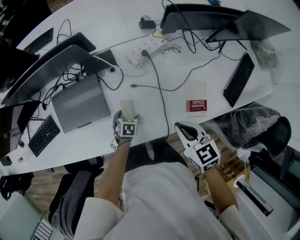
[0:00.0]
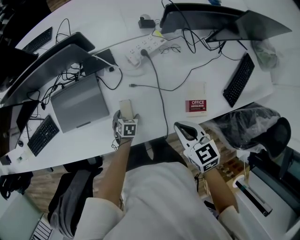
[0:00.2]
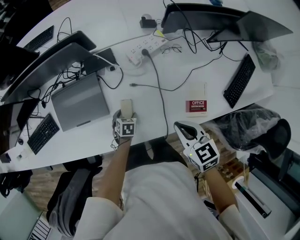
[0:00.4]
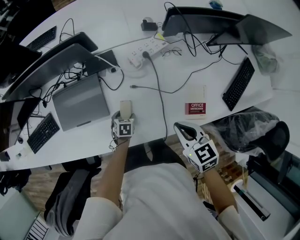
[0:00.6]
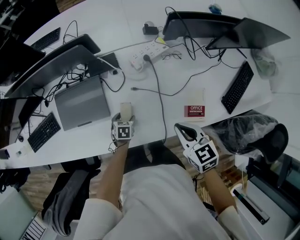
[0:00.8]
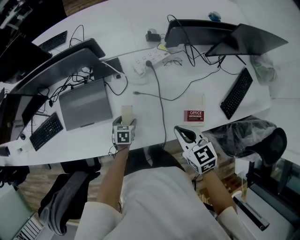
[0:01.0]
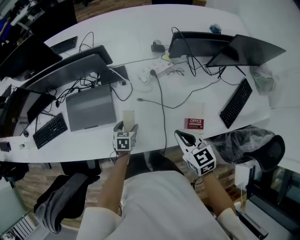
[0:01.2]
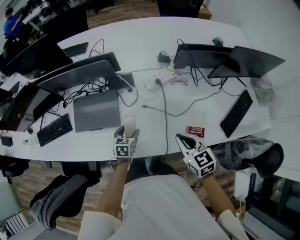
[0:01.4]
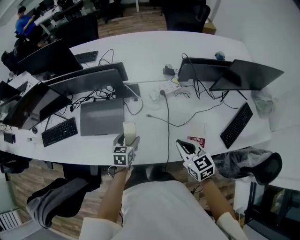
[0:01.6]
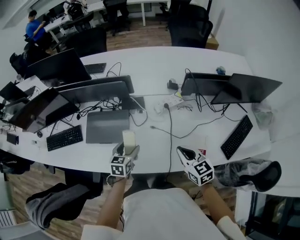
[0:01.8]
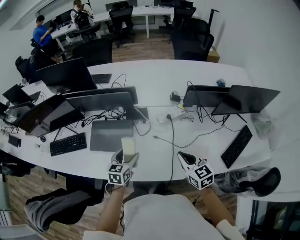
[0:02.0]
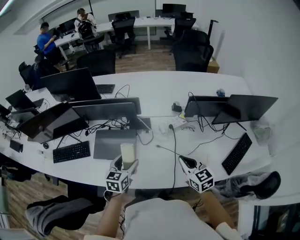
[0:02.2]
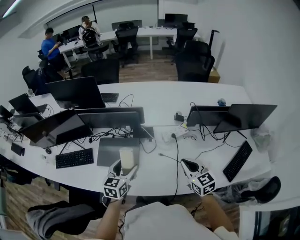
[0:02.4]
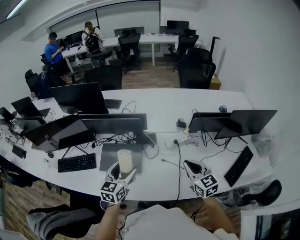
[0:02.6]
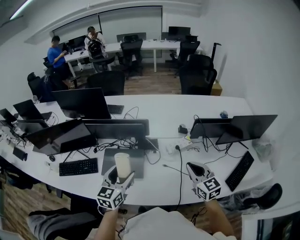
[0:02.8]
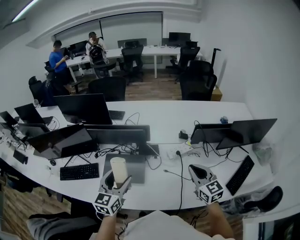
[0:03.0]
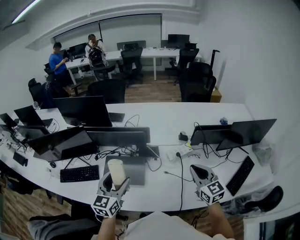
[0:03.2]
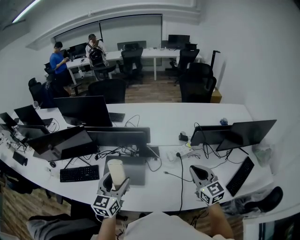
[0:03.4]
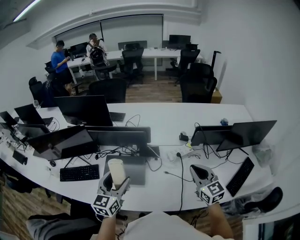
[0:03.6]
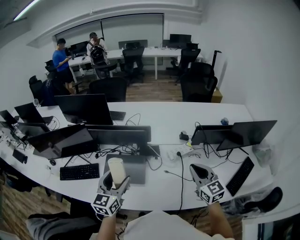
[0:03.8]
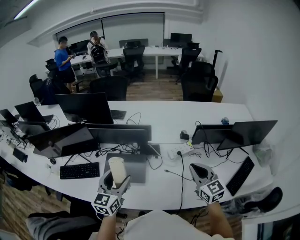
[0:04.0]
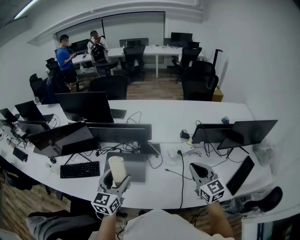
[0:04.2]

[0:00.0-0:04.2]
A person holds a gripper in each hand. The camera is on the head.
0:00.0 to 0:01.4: The left gripper heads upward, covering roughly 15 cm, and changes its angle by roughly 20 degrees; the right gripper shifts approximately 5 cm upward.
0:01.4 to 0:02.8: The left gripper shifts approximately 35 cm upward, and tilts its fingers about 30 degrees upward. The right gripper travels upward by some 20 cm.
0:02.8 to 0:04.2: The grippers make only small movements.

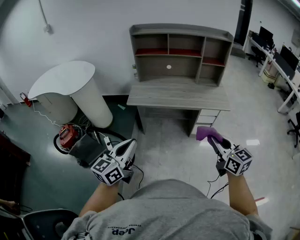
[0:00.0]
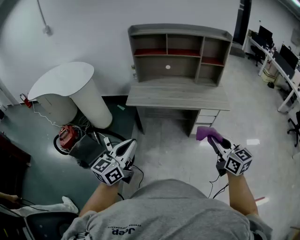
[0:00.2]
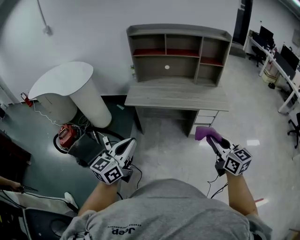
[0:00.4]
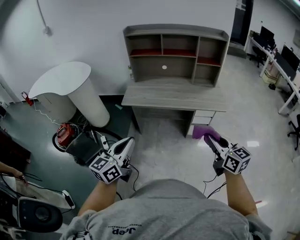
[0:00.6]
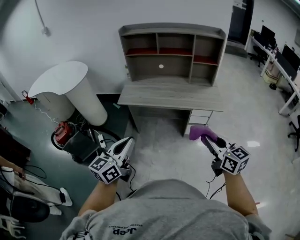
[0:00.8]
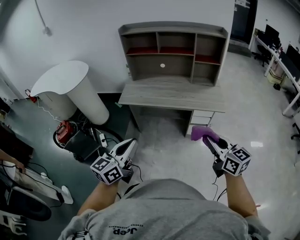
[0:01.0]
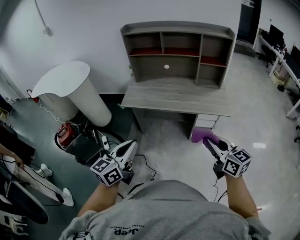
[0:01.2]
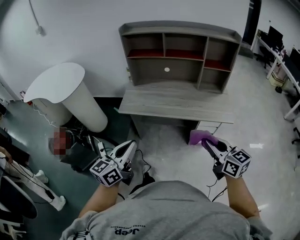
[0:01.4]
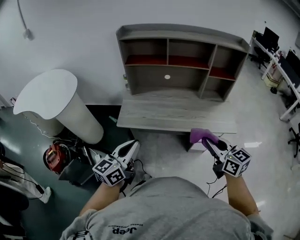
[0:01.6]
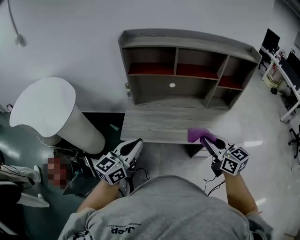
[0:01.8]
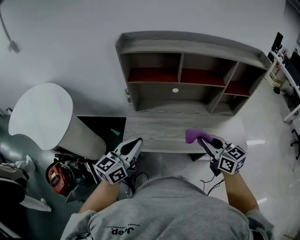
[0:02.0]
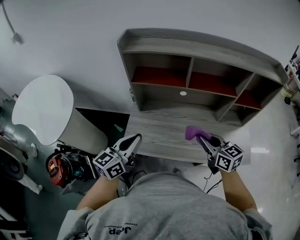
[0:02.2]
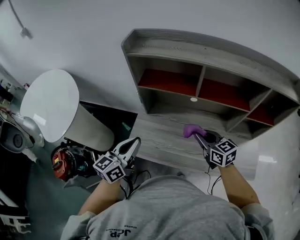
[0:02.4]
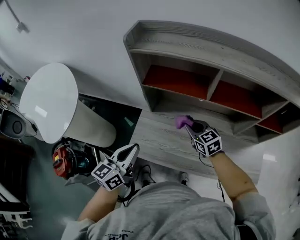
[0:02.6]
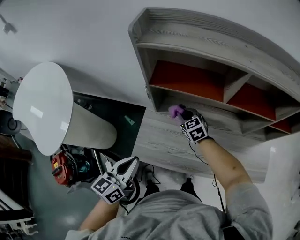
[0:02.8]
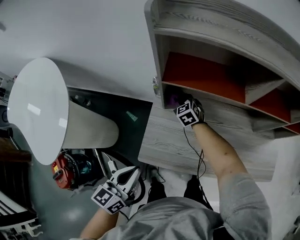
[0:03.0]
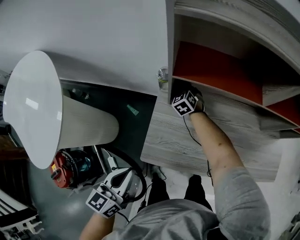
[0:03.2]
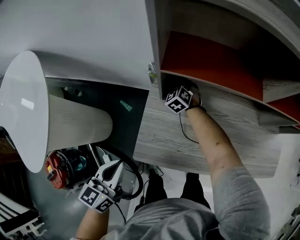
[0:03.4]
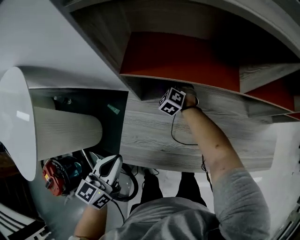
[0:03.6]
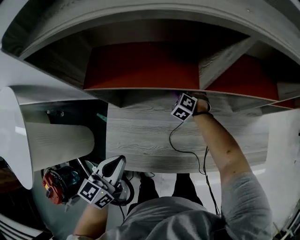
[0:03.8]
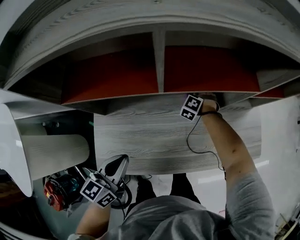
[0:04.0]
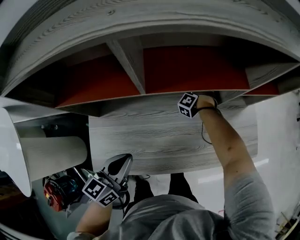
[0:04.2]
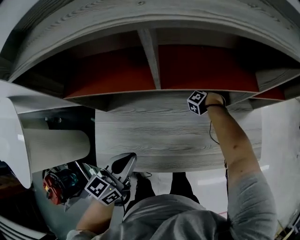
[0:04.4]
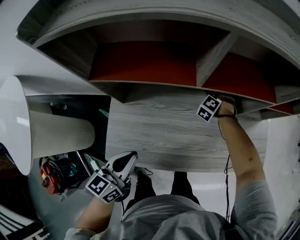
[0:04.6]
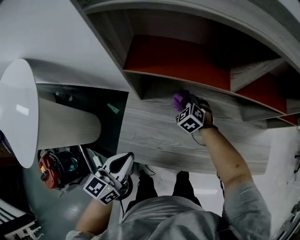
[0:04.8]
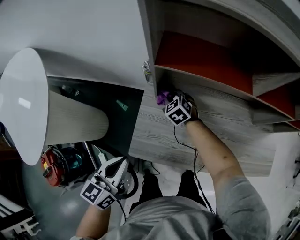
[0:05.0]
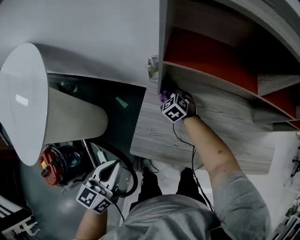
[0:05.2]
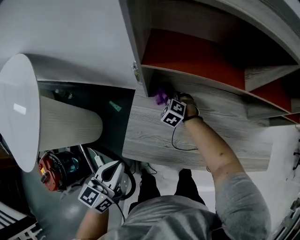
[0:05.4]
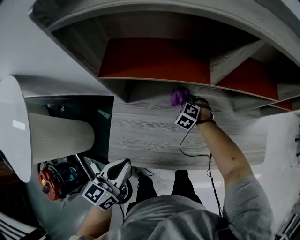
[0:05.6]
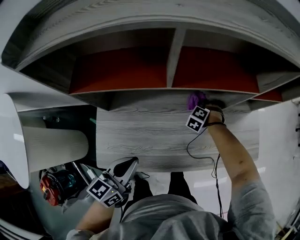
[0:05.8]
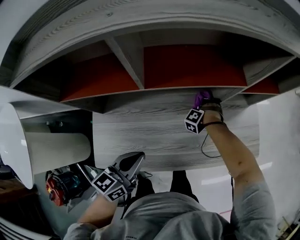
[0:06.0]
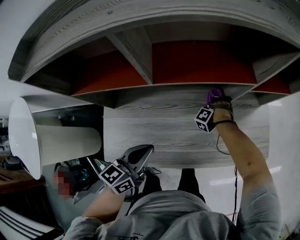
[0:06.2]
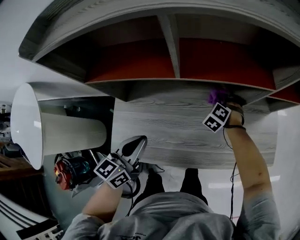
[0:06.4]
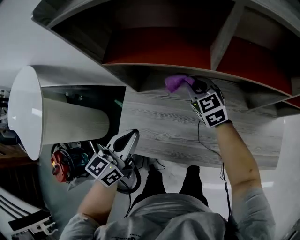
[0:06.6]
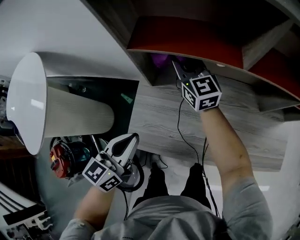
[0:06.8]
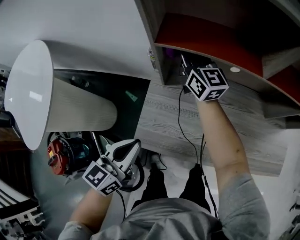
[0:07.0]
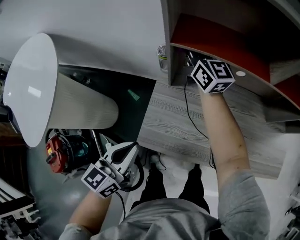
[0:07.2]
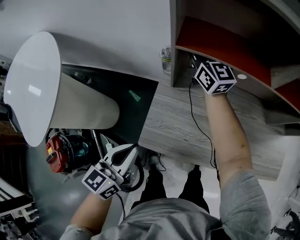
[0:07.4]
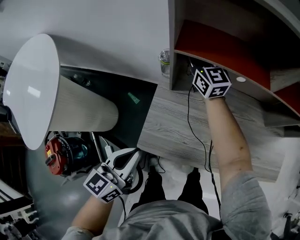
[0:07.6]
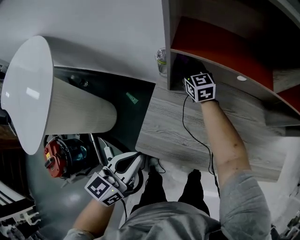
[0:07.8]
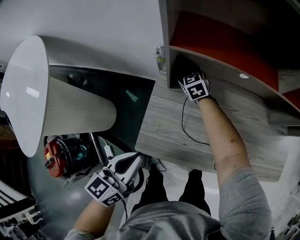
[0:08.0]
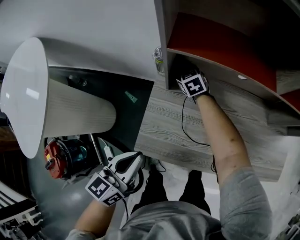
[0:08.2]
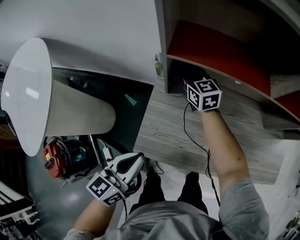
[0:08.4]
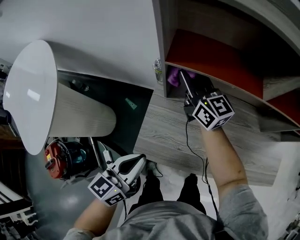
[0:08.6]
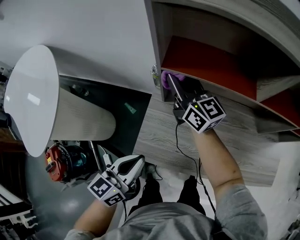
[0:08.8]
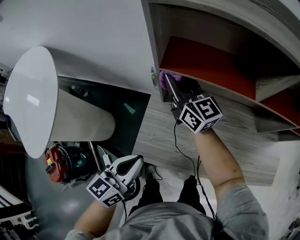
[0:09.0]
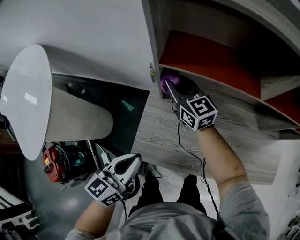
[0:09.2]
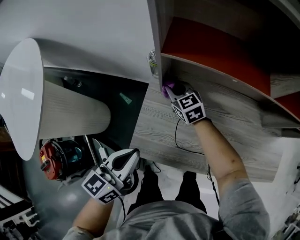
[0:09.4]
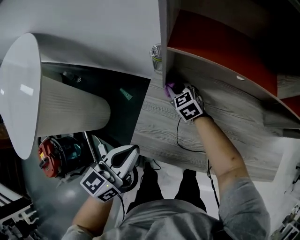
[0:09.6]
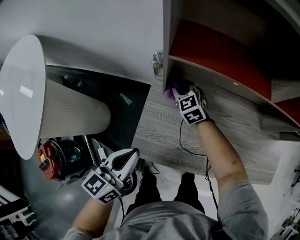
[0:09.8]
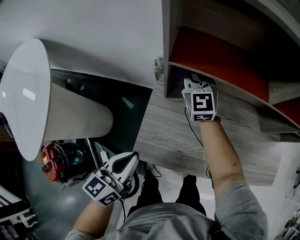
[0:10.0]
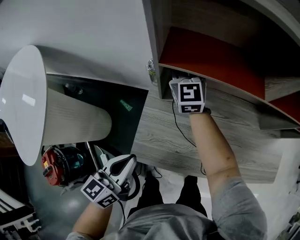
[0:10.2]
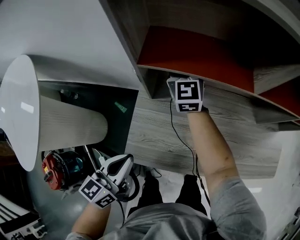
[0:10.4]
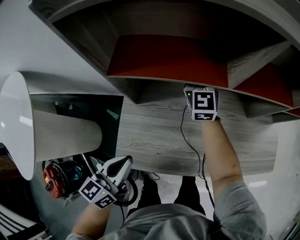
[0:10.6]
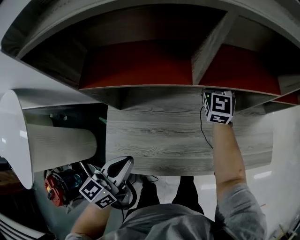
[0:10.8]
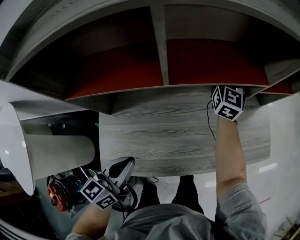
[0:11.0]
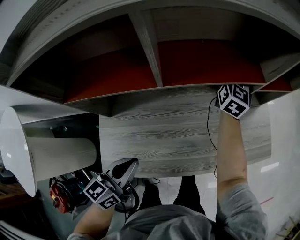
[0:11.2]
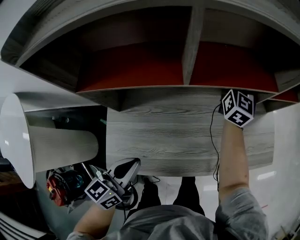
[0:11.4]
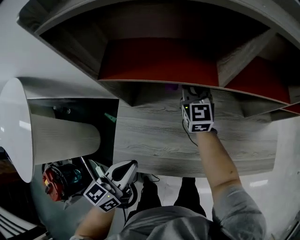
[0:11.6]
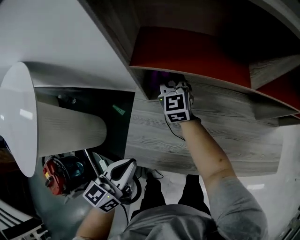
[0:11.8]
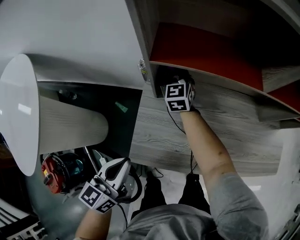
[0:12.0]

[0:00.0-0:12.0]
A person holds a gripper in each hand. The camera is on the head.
0:00.0 to 0:01.6: The two grippers go about 25 cm forward.
0:01.6 to 0:03.0: The left gripper goes about 40 cm forward, to the left and downward, and turns by roughly 20 degrees. The right gripper shifts some 80 cm forward, to the left and downward, and swivels roughly 40 degrees.
0:03.0 to 0:04.4: The left gripper ends up some 25 cm from where it was. The right gripper moves some 50 cm, and changes its angle by some 80 degrees.
0:04.4 to 0:06.0: The right gripper travels upward and back again, approximately 5 cm each way.
0:06.0 to 0:07.6: The left gripper shifts by some 30 cm, and swivels roughly 20 degrees. Meanwhile the right gripper changes place by about 60 cm, and angles its fingers upward, by roughly 50 degrees.
0:07.6 to 0:09.0: The right gripper heads backward, covering approximately 10 cm, and travels downward and back again, about 25 cm each way.
0:09.0 to 0:10.4: The right gripper moves forward and to the right, approximately 10 cm, travels downward and back again, roughly 25 cm each way, and swivels about 40 degrees.
0:10.4 to 0:12.0: The right gripper heads downward, covering about 10 cm.

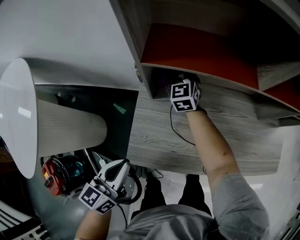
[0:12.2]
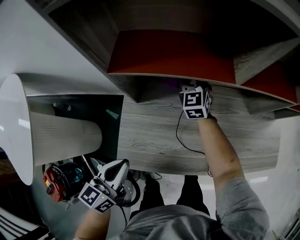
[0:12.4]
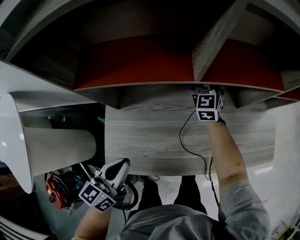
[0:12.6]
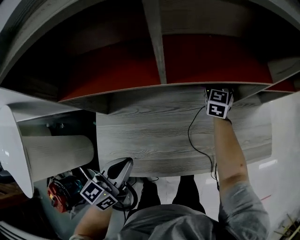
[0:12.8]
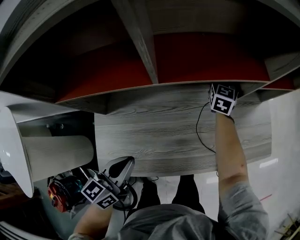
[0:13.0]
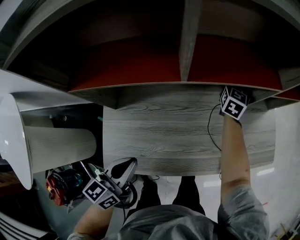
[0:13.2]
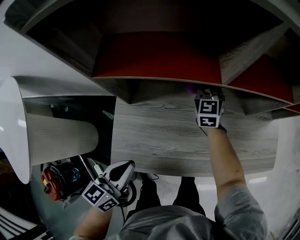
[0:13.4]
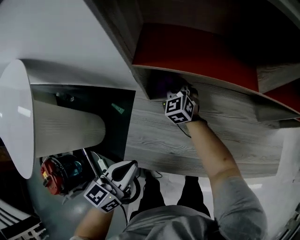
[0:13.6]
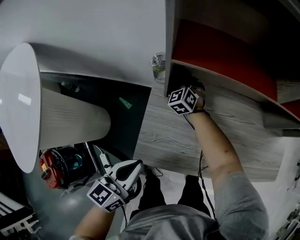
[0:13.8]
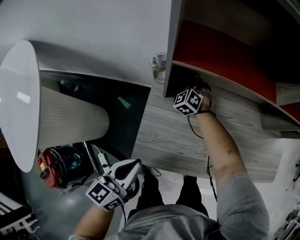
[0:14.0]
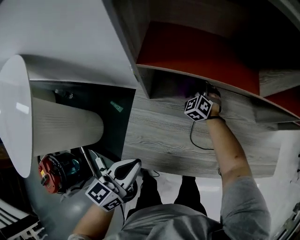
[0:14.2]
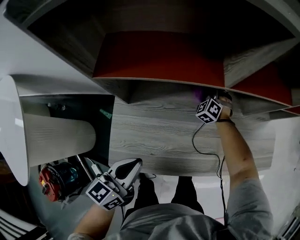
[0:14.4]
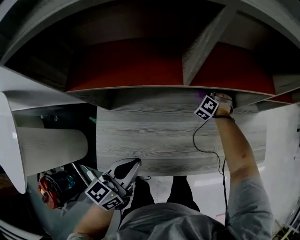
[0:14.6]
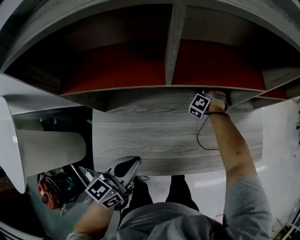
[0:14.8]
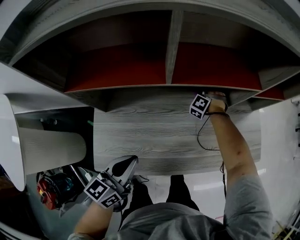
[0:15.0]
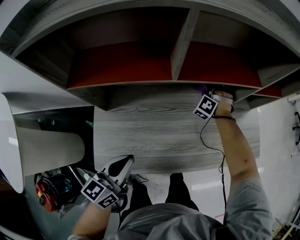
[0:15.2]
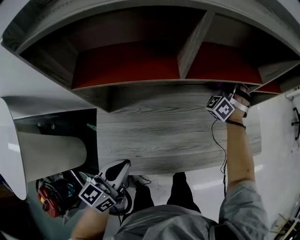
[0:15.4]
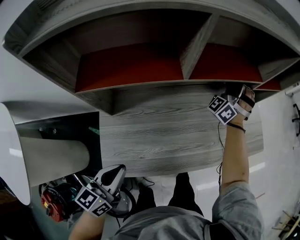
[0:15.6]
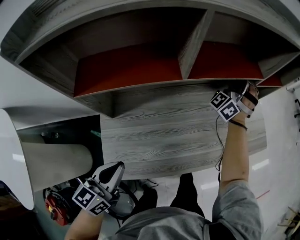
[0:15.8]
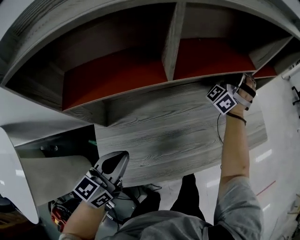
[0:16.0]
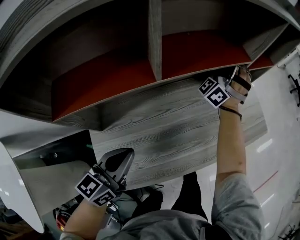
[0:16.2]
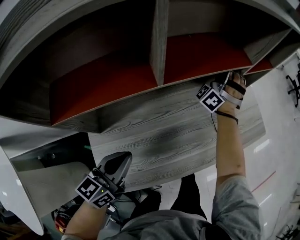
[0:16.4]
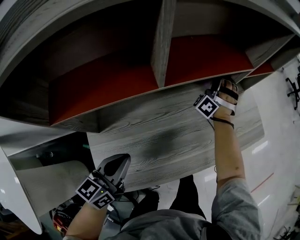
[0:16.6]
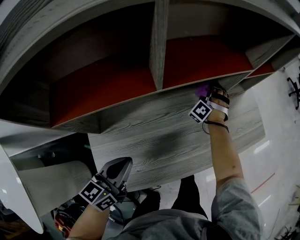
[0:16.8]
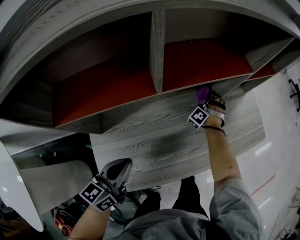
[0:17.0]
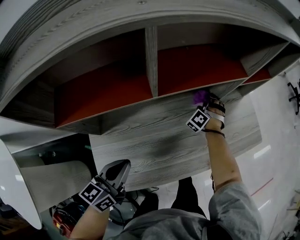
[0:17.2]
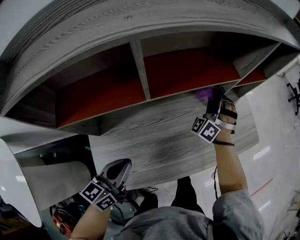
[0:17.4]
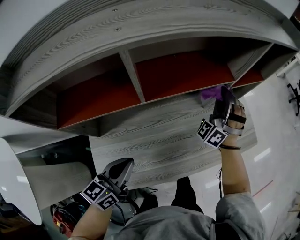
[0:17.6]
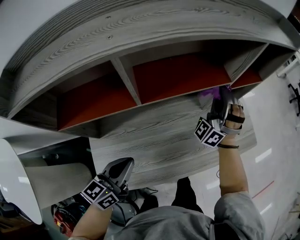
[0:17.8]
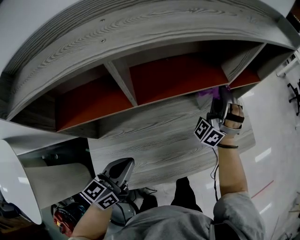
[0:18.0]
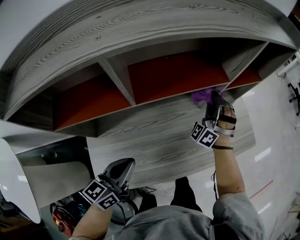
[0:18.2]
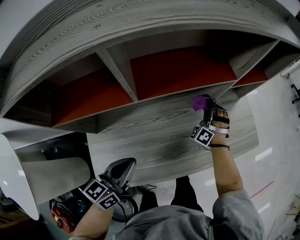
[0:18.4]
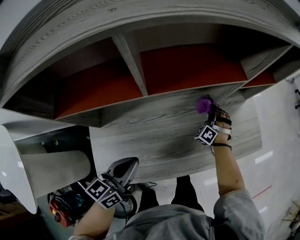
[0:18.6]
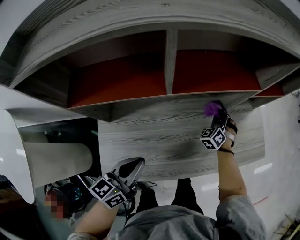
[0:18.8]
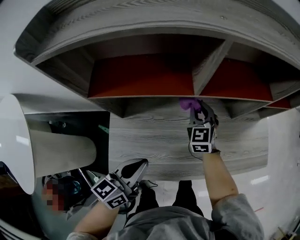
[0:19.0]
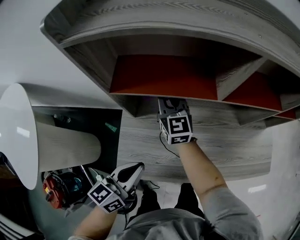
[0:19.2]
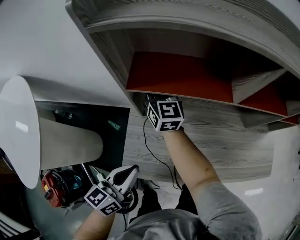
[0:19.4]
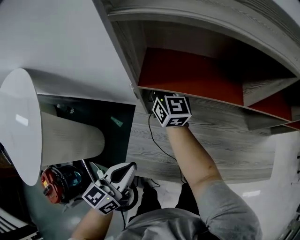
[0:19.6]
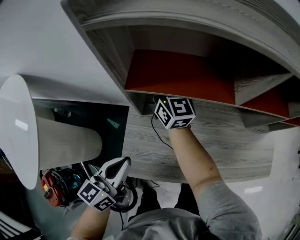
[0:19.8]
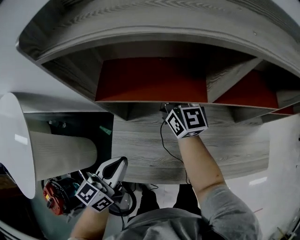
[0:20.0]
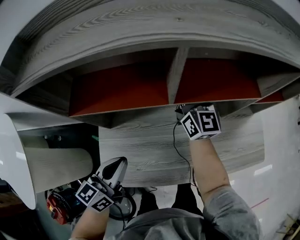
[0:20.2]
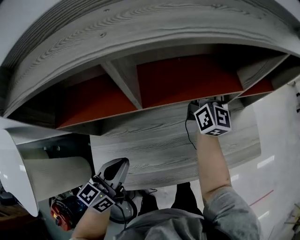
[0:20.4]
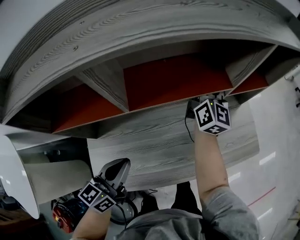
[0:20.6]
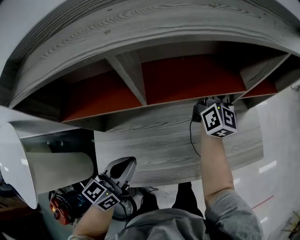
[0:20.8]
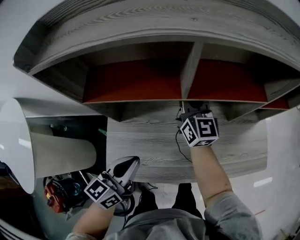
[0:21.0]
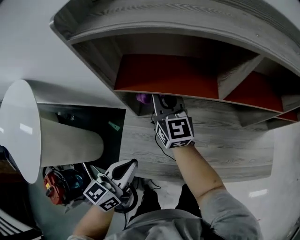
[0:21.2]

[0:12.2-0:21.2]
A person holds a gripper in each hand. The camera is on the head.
0:12.2 to 0:13.8: The right gripper heads downward, covering approximately 10 cm, and swivels roughly 30 degrees.
0:13.8 to 0:15.2: The left gripper ends up approximately 20 cm from where it was. The right gripper shifts by about 50 cm, and rotates some 50 degrees.
0:15.2 to 0:16.6: The left gripper heads to the left, covering approximately 5 cm. Meanwhile the right gripper heads to the right and upward, covering approximately 10 cm, and rotates some 30 degrees.
0:16.6 to 0:18.2: The left gripper heads to the right, covering about 5 cm, while the right gripper moves up and down over approximately 30 cm, changing direction 2 times.
0:18.2 to 0:19.8: The left gripper ends up some 25 cm from where it was, and turns by some 20 degrees. Meanwhile the right gripper reaches roughly 20 cm downward, then returns, and turns by approximately 110 degrees.
